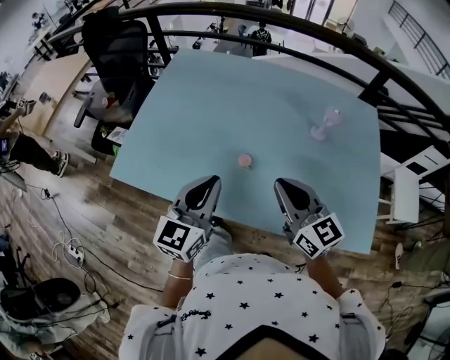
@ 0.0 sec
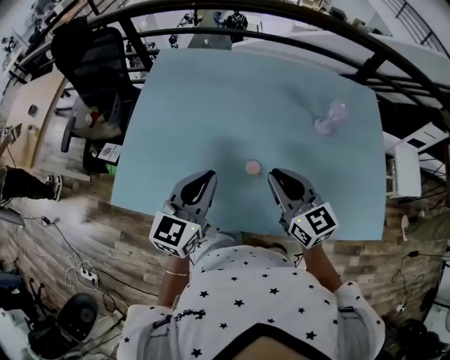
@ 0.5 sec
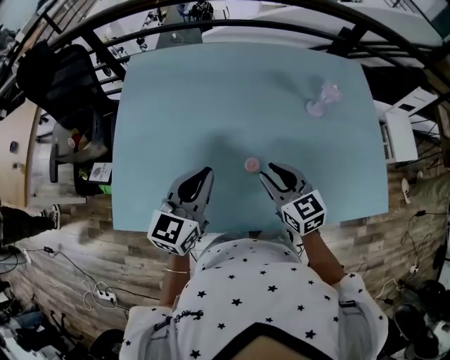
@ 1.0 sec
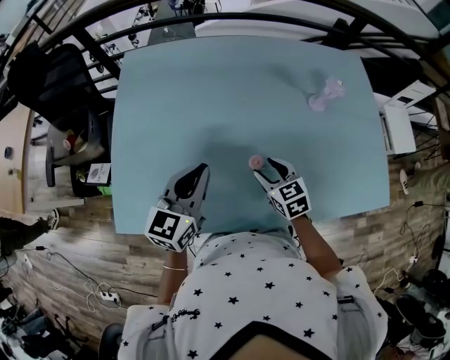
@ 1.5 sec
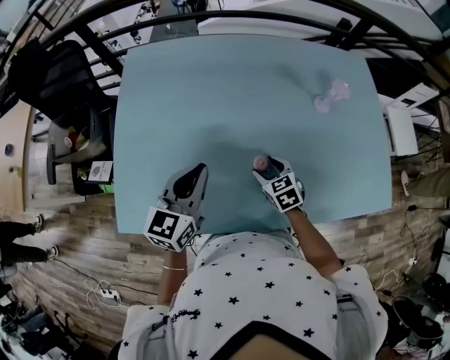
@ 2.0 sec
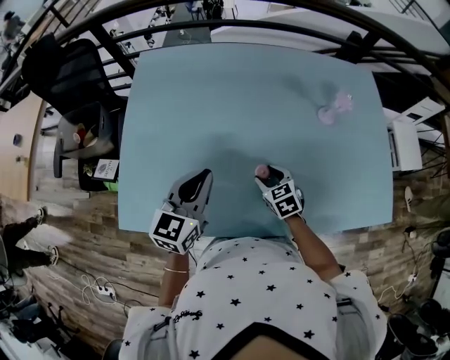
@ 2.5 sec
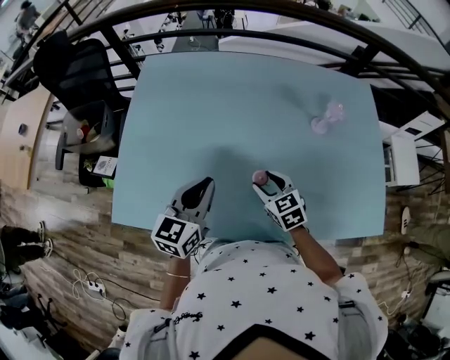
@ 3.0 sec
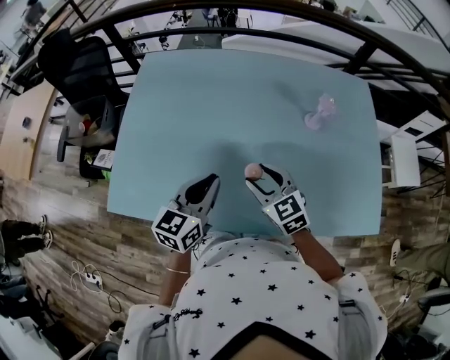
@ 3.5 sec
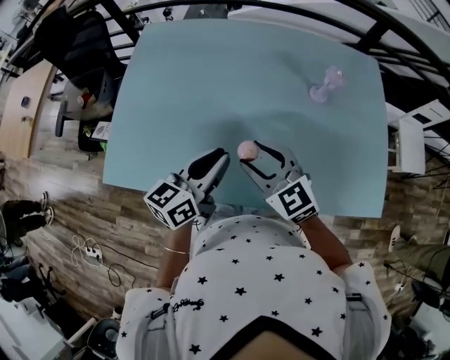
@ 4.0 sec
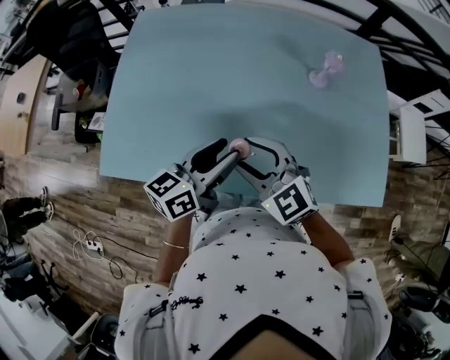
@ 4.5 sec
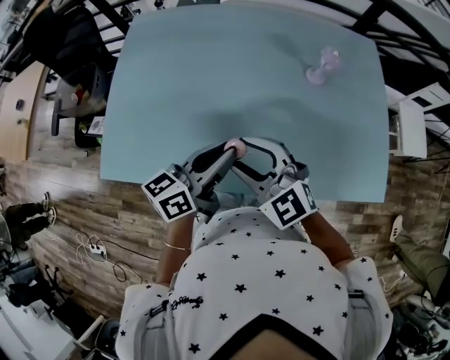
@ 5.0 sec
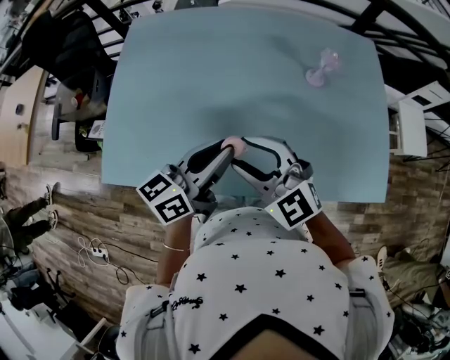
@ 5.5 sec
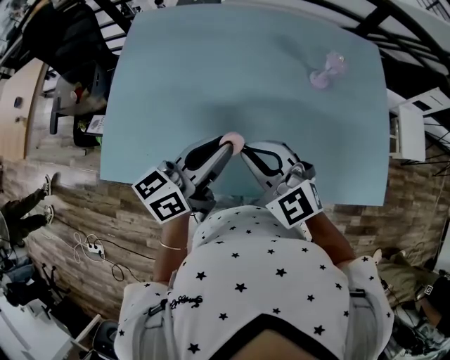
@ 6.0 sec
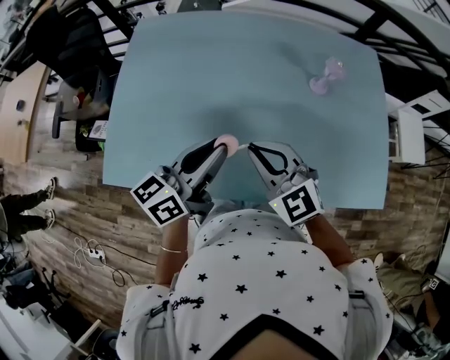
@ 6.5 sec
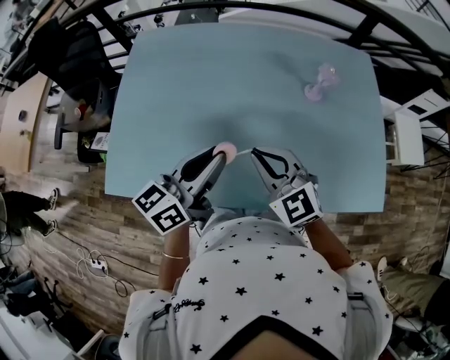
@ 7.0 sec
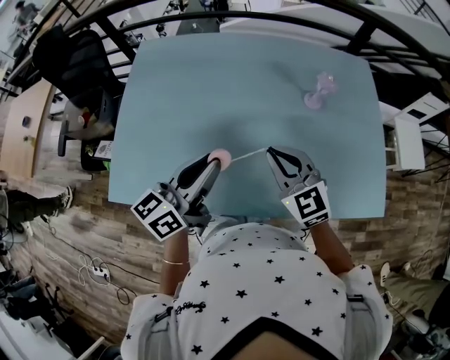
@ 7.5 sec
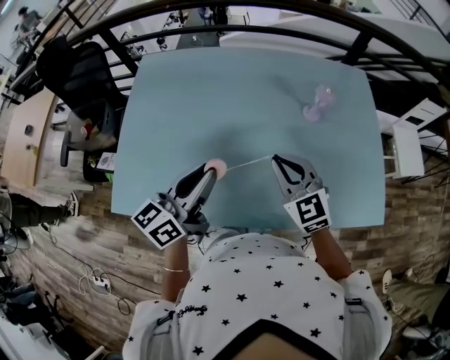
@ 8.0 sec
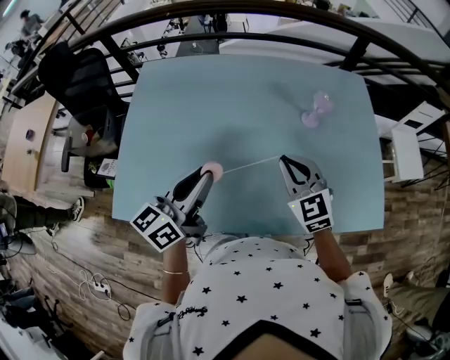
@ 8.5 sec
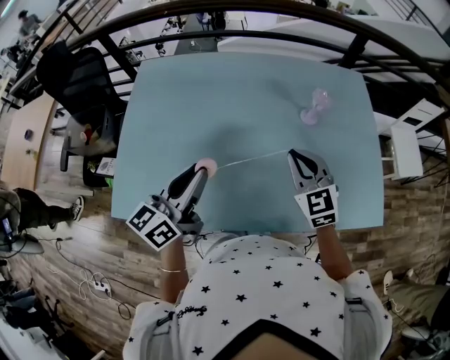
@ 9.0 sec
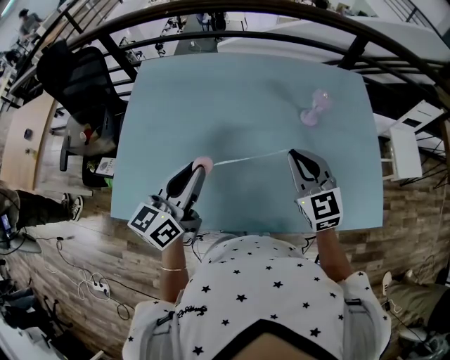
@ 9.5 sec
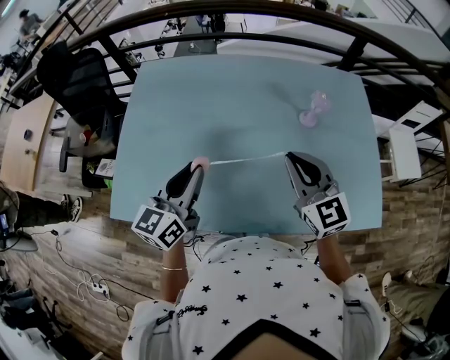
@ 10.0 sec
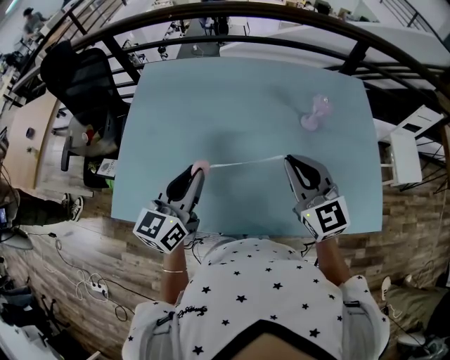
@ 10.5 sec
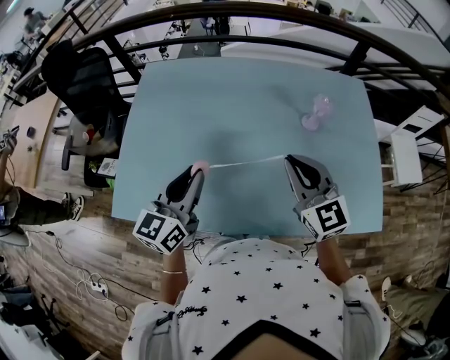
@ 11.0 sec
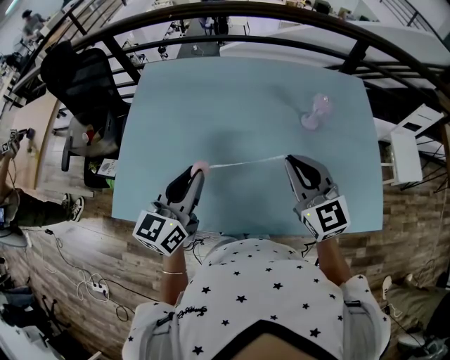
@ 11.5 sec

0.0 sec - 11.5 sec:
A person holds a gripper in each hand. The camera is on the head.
0.0 sec - 2.0 sec: The left gripper moves forward, to the left and downward, approximately 20 cm; the right gripper travels downward and forward by some 30 cm, tilts its fingers approximately 40 degrees downward, and opens.
2.0 sec - 4.0 sec: The right gripper moves upward, roughly 20 cm, and rotates approximately 40 degrees. The left gripper moves to the right and backward, roughly 15 cm, and changes its angle by about 20 degrees.
4.0 sec - 6.0 sec: The right gripper closes its fingers. Meanwhile the left gripper opens, then closes once more.
6.0 sec - 7.5 sec: The right gripper is displaced to the right by roughly 5 cm.
7.5 sec - 9.5 sec: The right gripper moves to the right, about 5 cm.
9.5 sec - 11.5 sec: The grippers stay close to where they were, moving slightly.

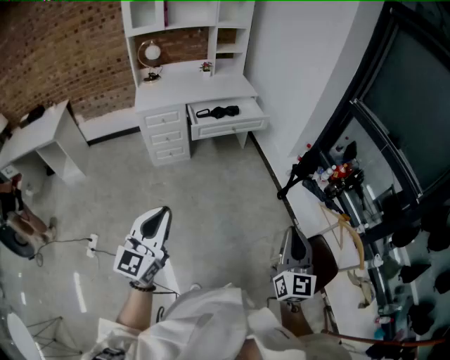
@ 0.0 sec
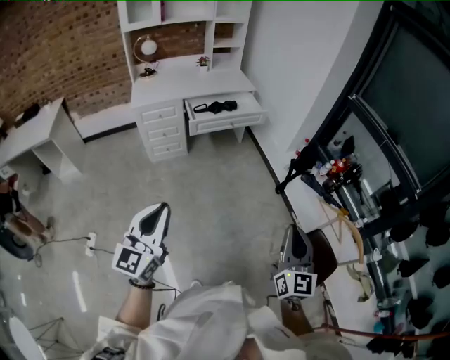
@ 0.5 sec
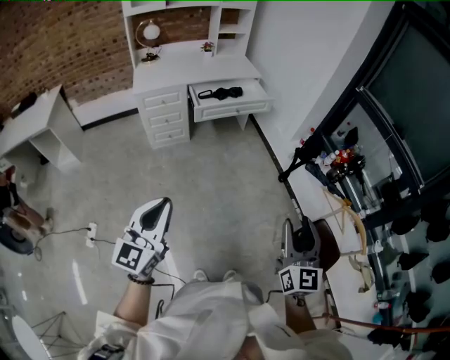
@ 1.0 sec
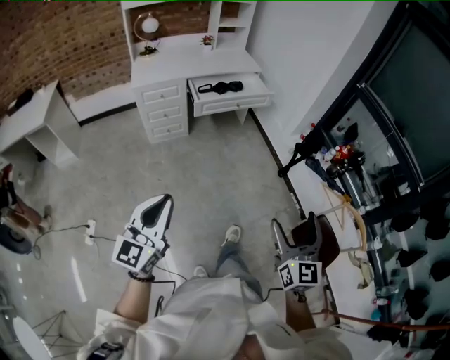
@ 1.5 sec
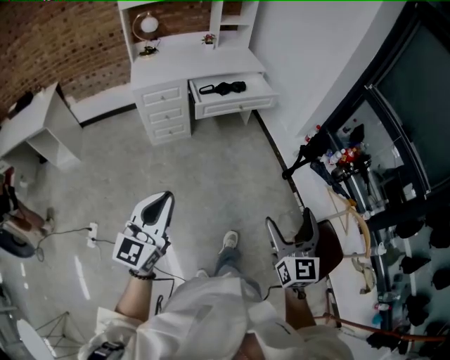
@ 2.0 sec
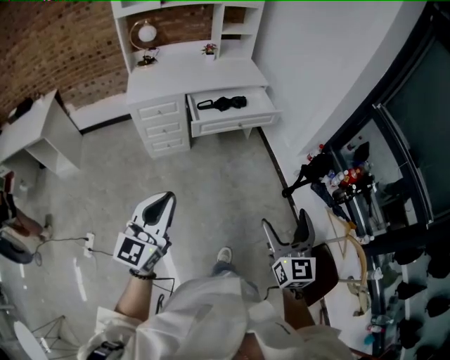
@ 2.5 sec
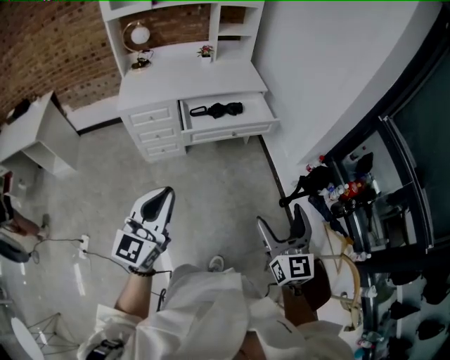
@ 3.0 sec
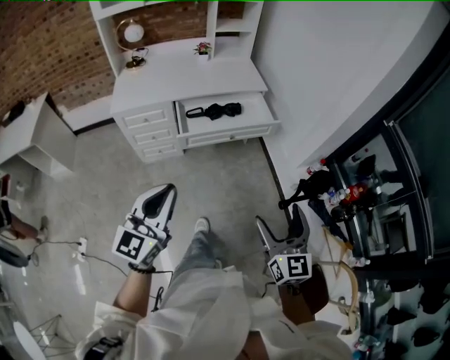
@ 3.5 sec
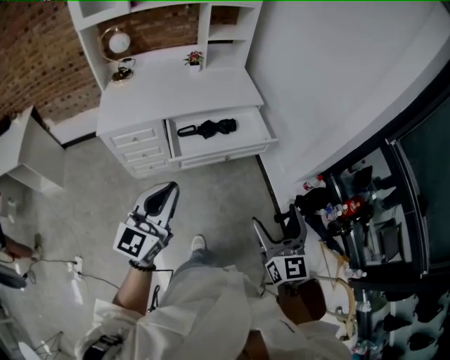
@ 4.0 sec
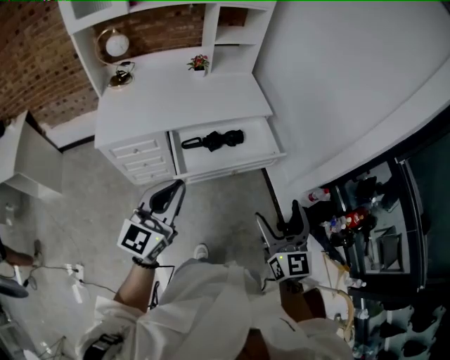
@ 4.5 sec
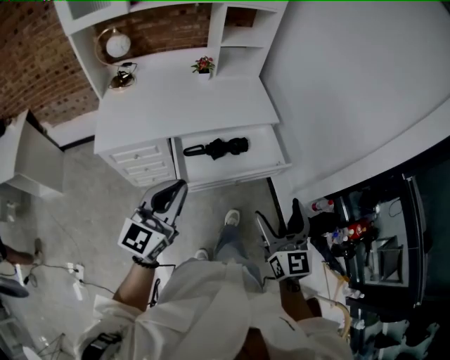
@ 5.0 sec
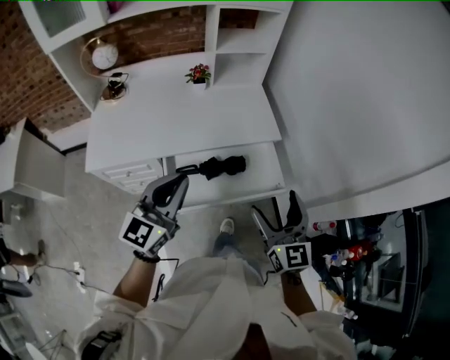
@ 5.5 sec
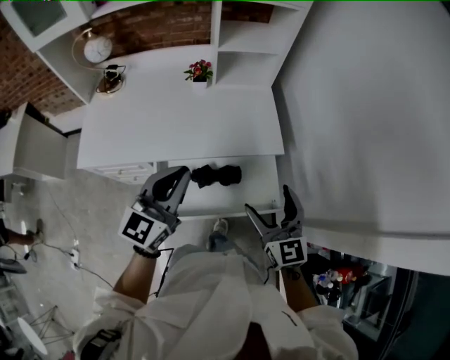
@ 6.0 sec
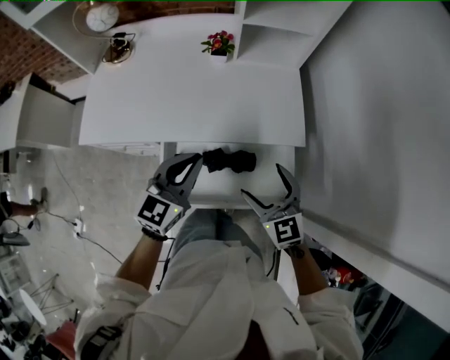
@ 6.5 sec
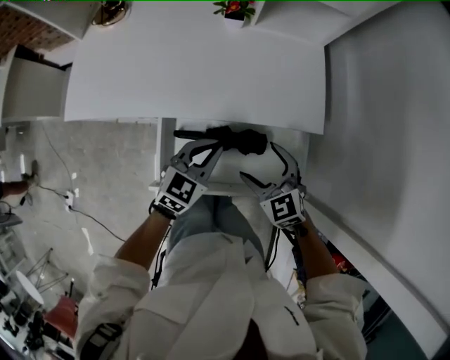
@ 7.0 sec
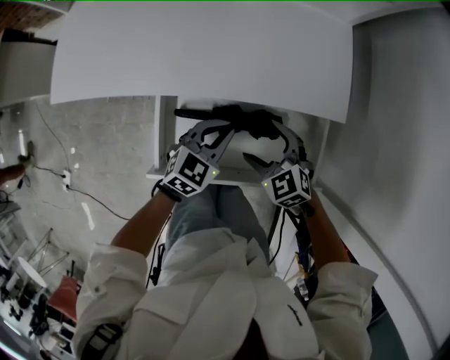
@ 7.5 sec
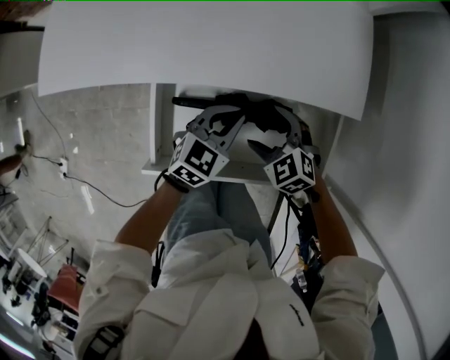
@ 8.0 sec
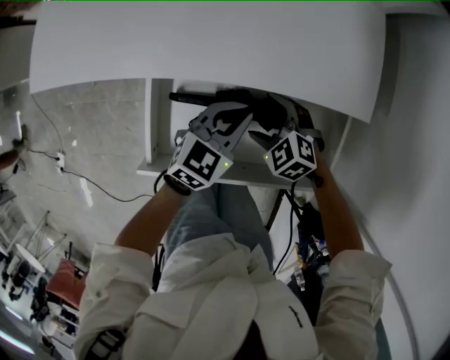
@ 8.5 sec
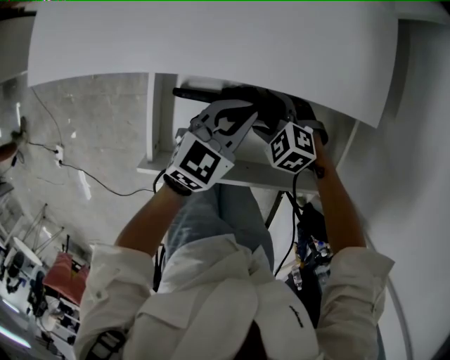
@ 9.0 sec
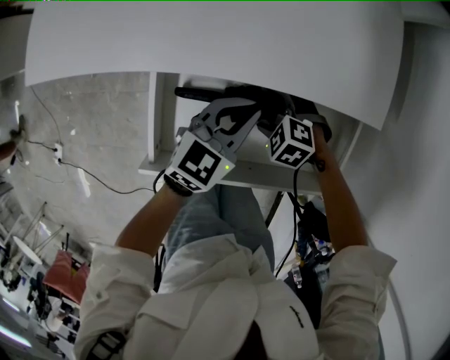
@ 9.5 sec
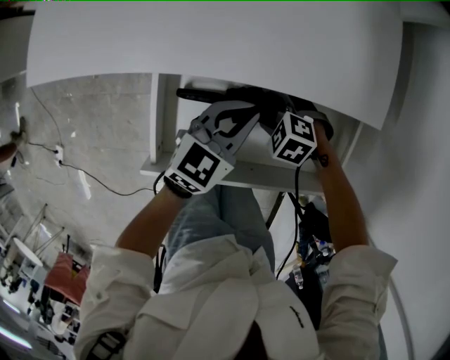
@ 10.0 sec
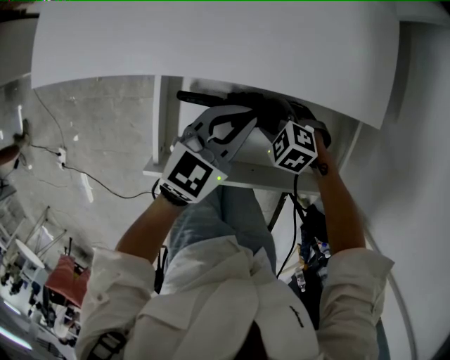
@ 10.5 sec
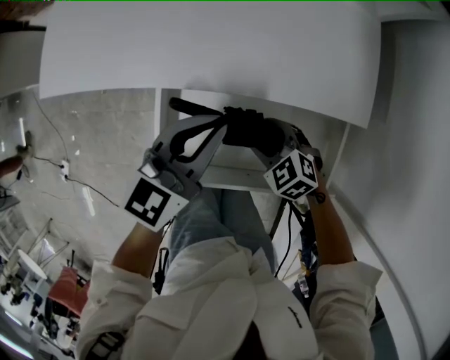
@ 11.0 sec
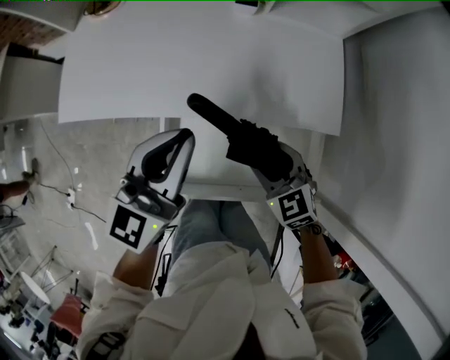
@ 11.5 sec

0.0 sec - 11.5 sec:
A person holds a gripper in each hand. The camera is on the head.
0.0 sec - 2.0 sec: The two grippers go some 10 cm to the left and forward. The right gripper opens up.
2.0 sec - 4.0 sec: Both grippers are carried forward, about 50 cm.
4.0 sec - 6.0 sec: Both grippers are carried forward, approximately 50 cm. The right gripper changes its angle by approximately 20 degrees.
6.0 sec - 7.5 sec: The grippers both shift downward by approximately 30 cm. The left gripper rotates approximately 30 degrees, while the right gripper angles its fingers downward, by about 40 degrees.
7.5 sec - 9.5 sec: The right gripper moves downward, approximately 15 cm, and turns by about 30 degrees, while the left gripper moves roughly 5 cm.
9.5 sec - 11.5 sec: Both grippers travel together upward, about 30 cm. The right gripper points its fingers some 30 degrees further upward, and closes its fingers. The left gripper turns by approximately 30 degrees.

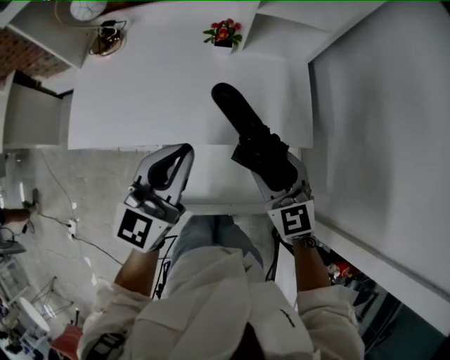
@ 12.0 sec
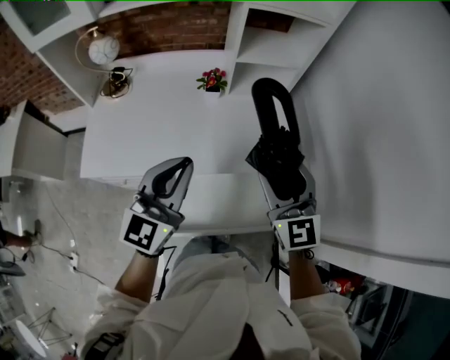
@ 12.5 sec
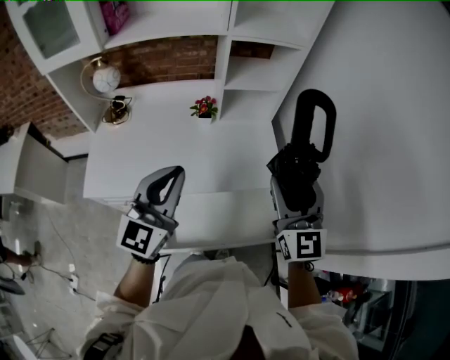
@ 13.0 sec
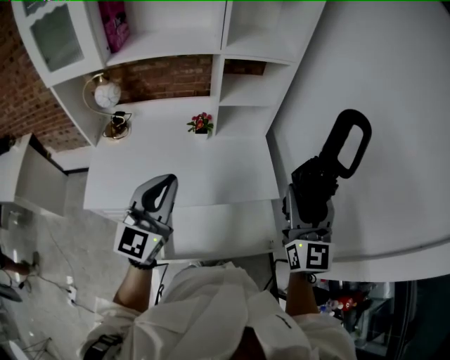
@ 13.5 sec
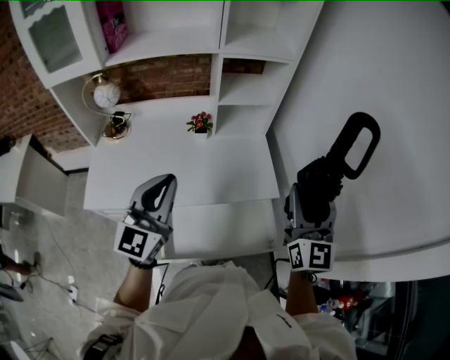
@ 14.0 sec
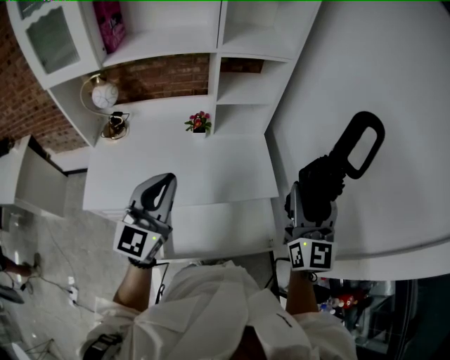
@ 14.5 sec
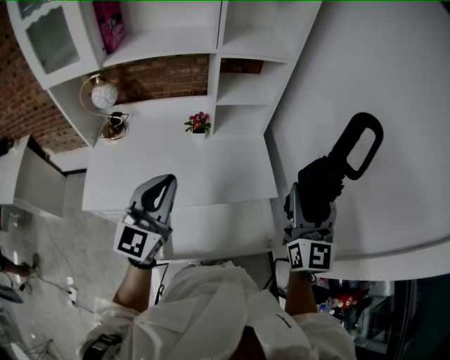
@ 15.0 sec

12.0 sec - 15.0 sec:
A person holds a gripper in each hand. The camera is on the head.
12.0 sec - 13.5 sec: The right gripper travels upward and to the right by approximately 30 cm, and tips its fingers upward by approximately 30 degrees. Meanwhile the left gripper is displaced upward by some 15 cm.
13.5 sec - 15.0 sec: The grippers make only small movements.
